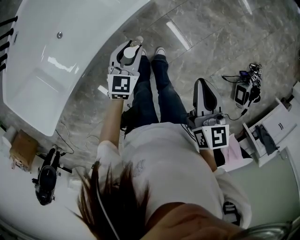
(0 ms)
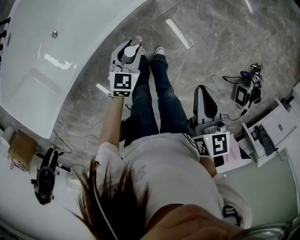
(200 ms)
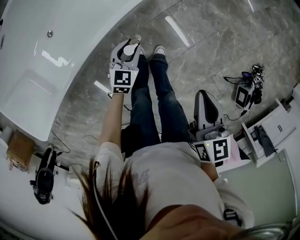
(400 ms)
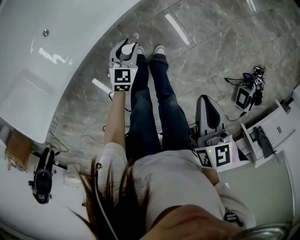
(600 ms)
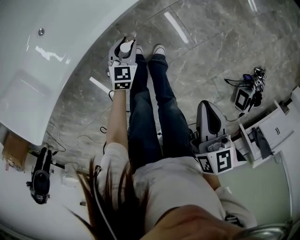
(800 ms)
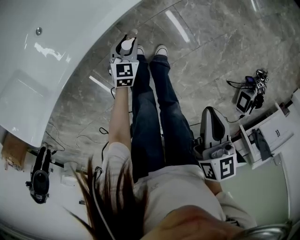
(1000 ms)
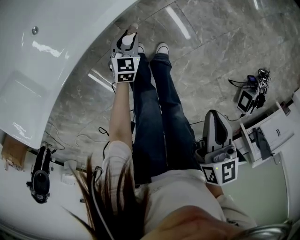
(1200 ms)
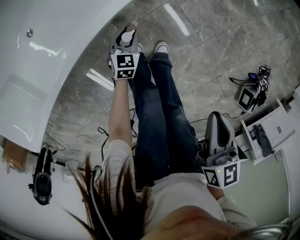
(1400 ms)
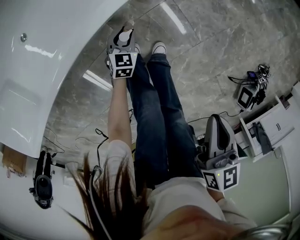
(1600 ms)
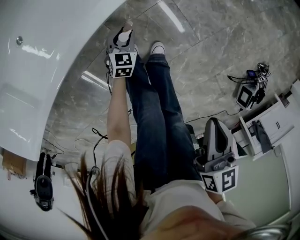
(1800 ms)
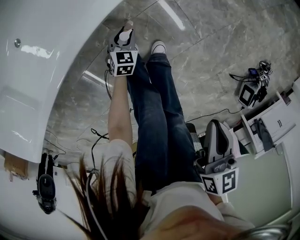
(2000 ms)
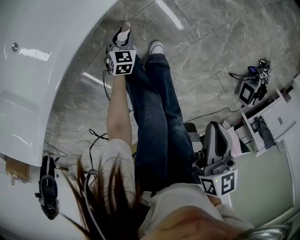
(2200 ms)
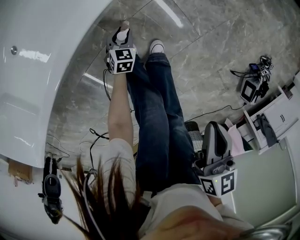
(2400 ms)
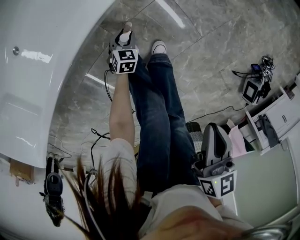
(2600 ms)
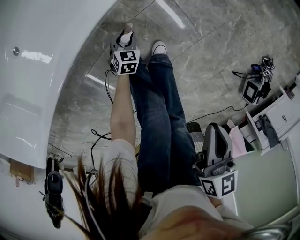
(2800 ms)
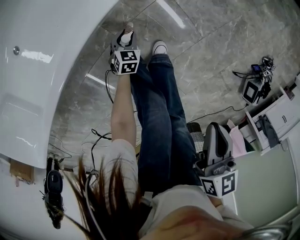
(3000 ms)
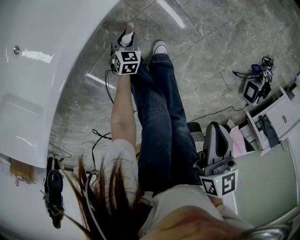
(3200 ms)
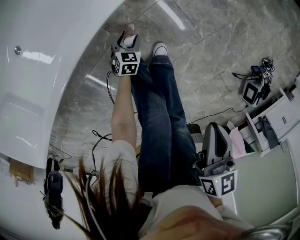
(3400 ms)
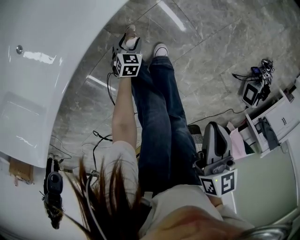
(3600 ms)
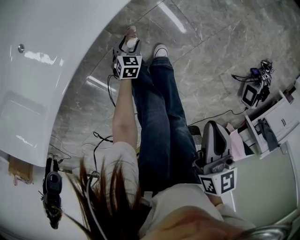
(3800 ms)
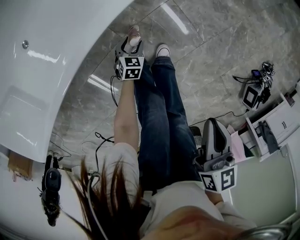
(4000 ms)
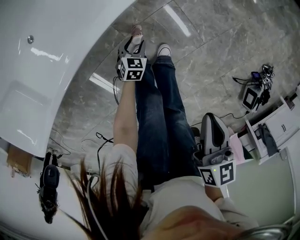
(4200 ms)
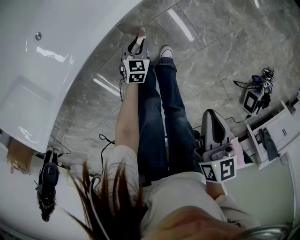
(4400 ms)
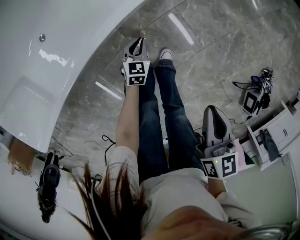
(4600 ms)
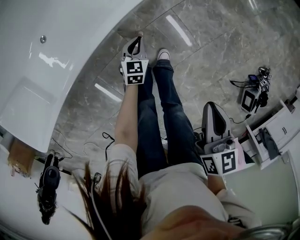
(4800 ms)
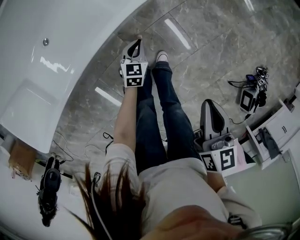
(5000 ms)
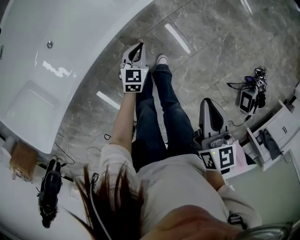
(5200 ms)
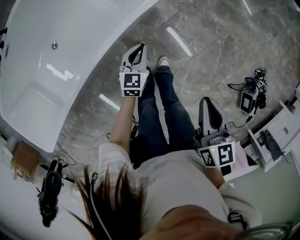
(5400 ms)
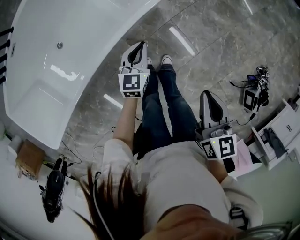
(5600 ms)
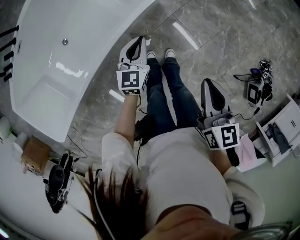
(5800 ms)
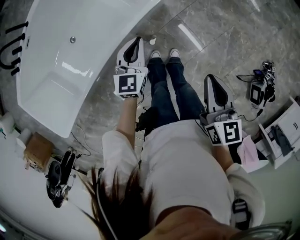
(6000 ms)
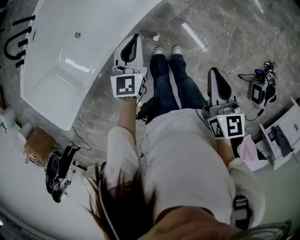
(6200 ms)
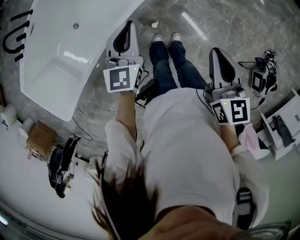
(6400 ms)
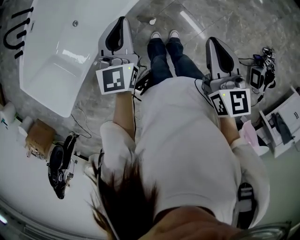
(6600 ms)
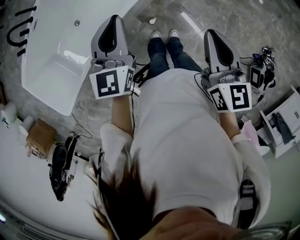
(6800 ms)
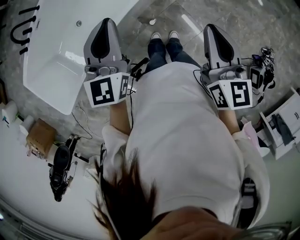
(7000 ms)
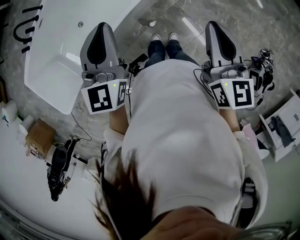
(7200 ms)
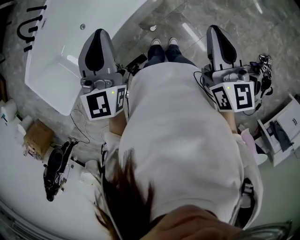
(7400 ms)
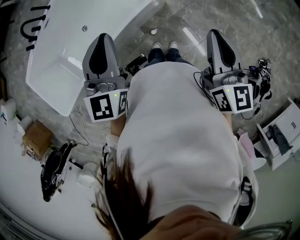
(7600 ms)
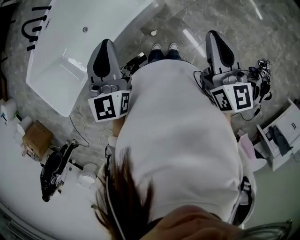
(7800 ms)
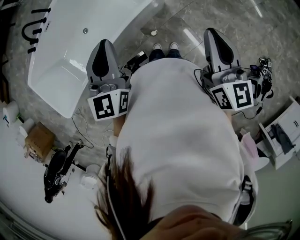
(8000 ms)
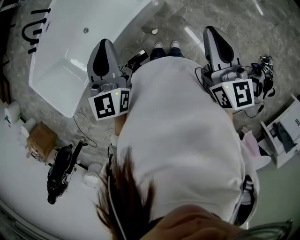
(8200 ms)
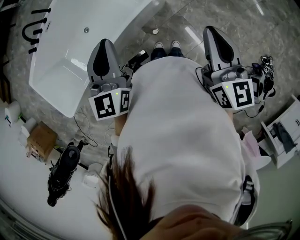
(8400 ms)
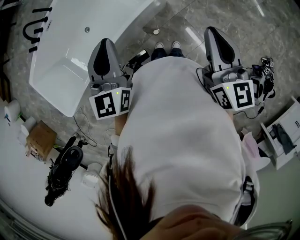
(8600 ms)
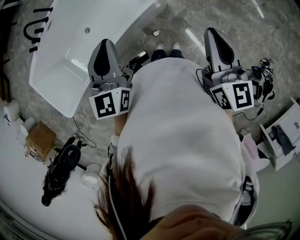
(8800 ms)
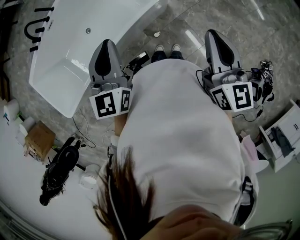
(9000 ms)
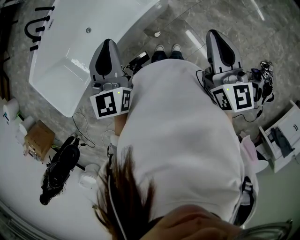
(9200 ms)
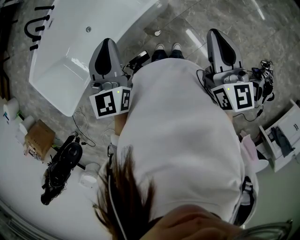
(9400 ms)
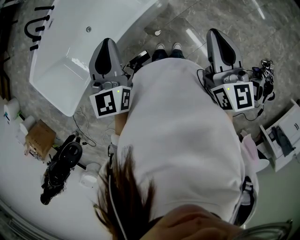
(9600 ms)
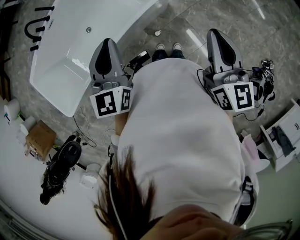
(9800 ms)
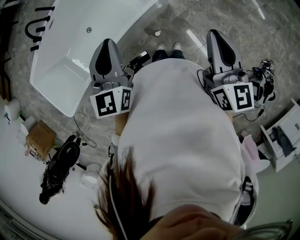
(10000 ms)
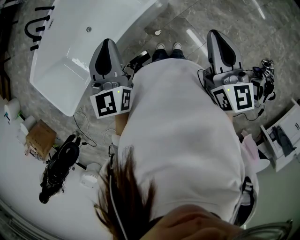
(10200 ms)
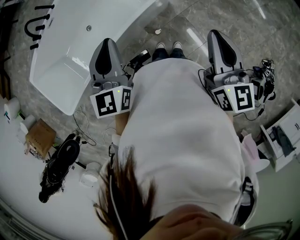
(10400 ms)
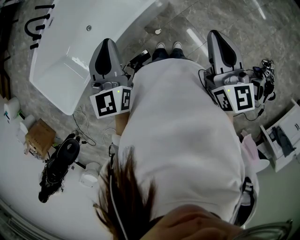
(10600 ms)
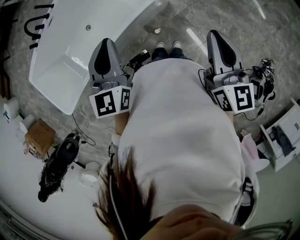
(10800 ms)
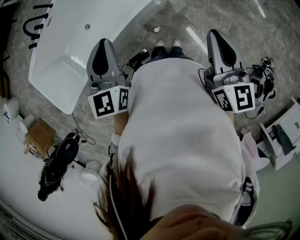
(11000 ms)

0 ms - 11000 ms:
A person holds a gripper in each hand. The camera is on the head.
0 ms - 1600 ms: The left gripper shifts about 40 cm downward. Meanwhile the right gripper goes some 20 cm downward.
1600 ms - 3200 ms: The left gripper goes some 10 cm downward.
3200 ms - 4800 ms: The right gripper is displaced upward by approximately 10 cm. The left gripper is displaced upward by approximately 20 cm, and closes.
4800 ms - 6200 ms: The right gripper shifts approximately 15 cm upward. Meanwhile the left gripper goes approximately 40 cm upward, and turns by roughly 20 degrees.
6200 ms - 7800 ms: Both grippers travel together upward, roughly 20 cm.
7800 ms - 11000 ms: The grippers stay close to where they were, moving slightly.

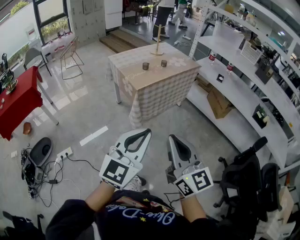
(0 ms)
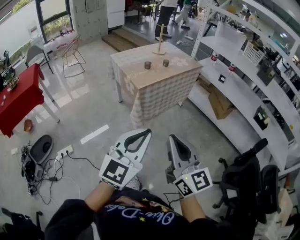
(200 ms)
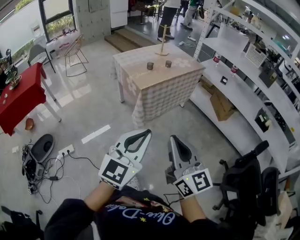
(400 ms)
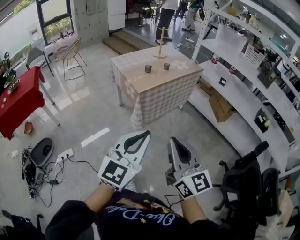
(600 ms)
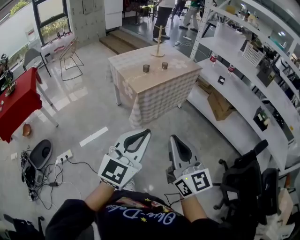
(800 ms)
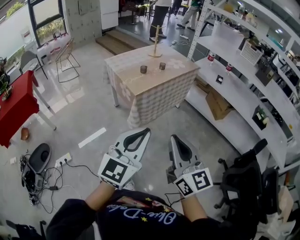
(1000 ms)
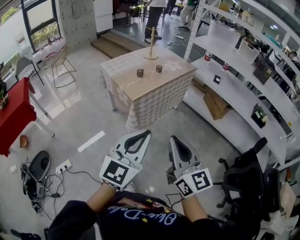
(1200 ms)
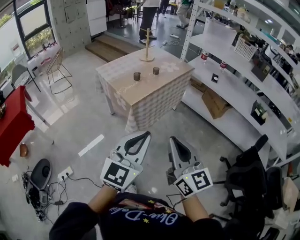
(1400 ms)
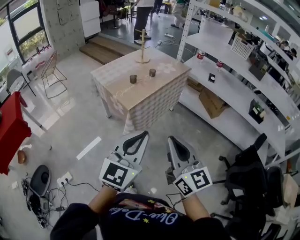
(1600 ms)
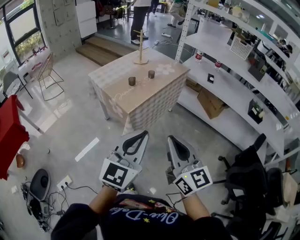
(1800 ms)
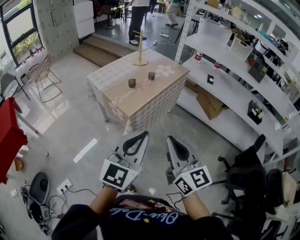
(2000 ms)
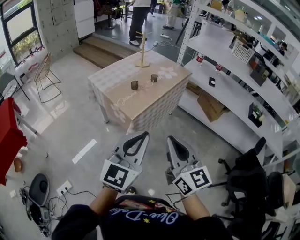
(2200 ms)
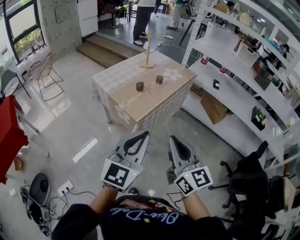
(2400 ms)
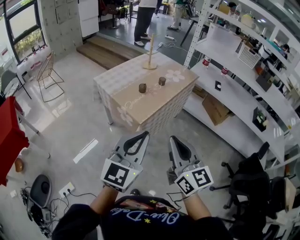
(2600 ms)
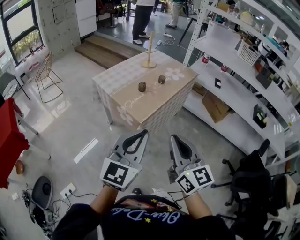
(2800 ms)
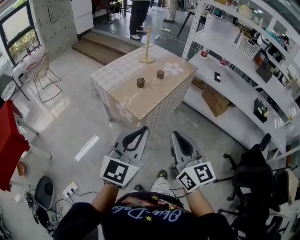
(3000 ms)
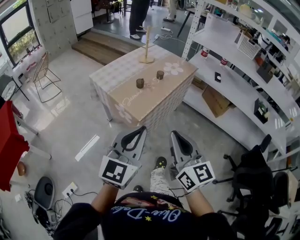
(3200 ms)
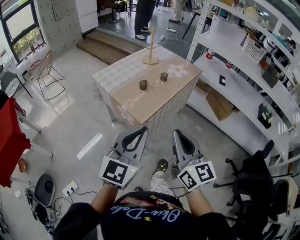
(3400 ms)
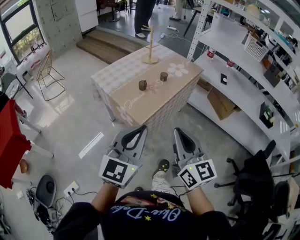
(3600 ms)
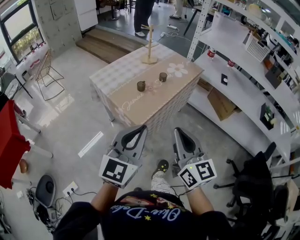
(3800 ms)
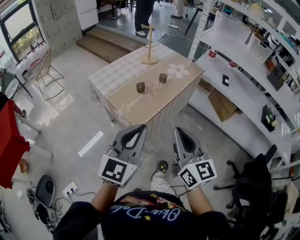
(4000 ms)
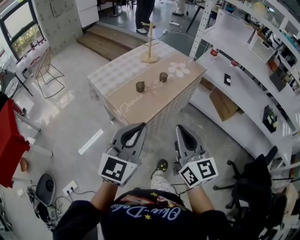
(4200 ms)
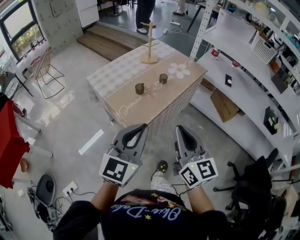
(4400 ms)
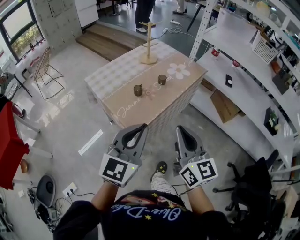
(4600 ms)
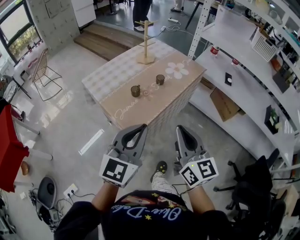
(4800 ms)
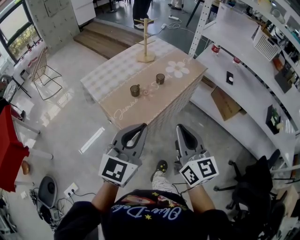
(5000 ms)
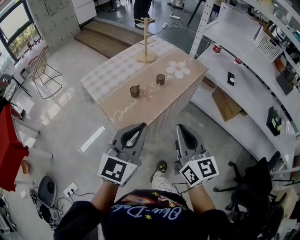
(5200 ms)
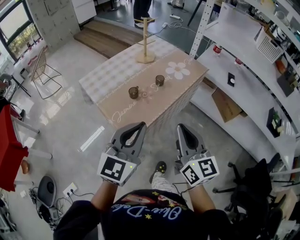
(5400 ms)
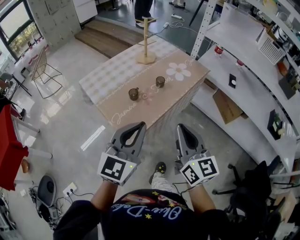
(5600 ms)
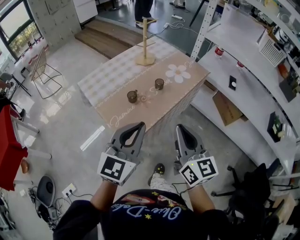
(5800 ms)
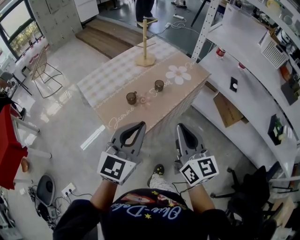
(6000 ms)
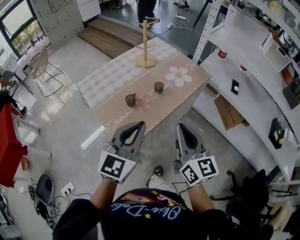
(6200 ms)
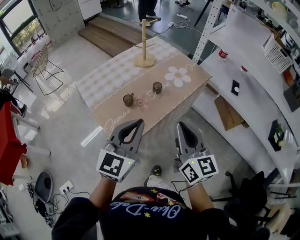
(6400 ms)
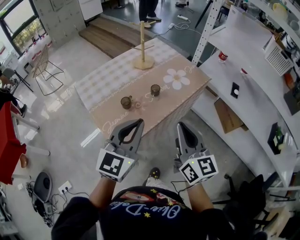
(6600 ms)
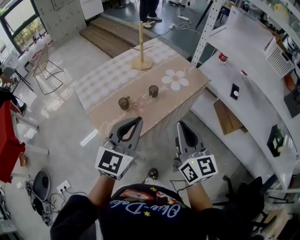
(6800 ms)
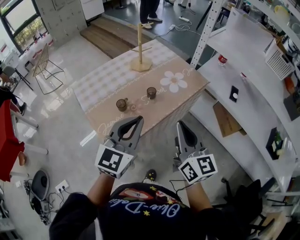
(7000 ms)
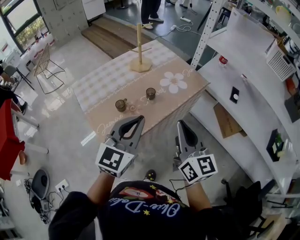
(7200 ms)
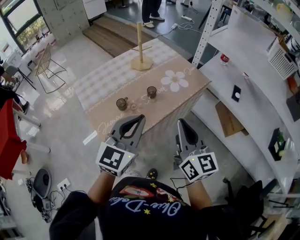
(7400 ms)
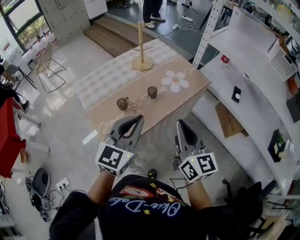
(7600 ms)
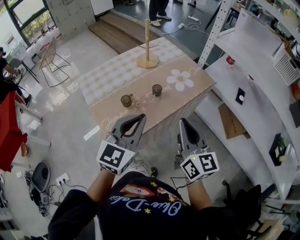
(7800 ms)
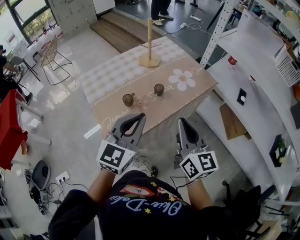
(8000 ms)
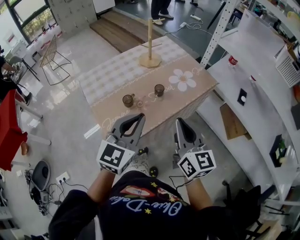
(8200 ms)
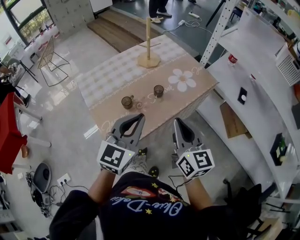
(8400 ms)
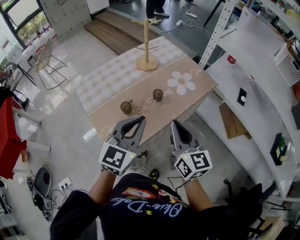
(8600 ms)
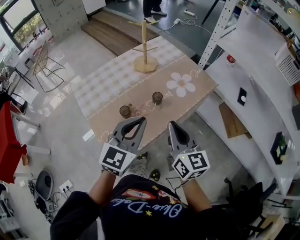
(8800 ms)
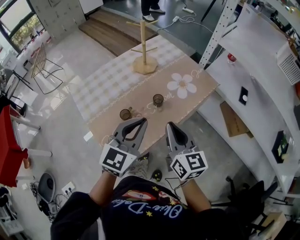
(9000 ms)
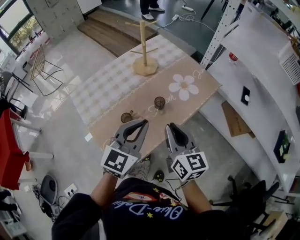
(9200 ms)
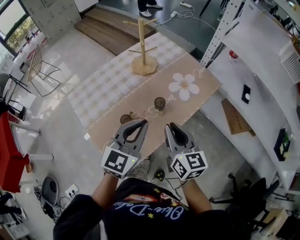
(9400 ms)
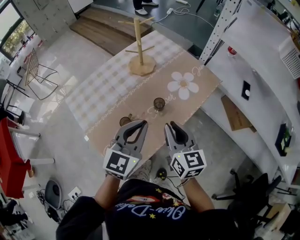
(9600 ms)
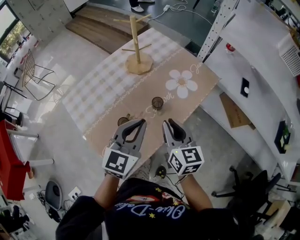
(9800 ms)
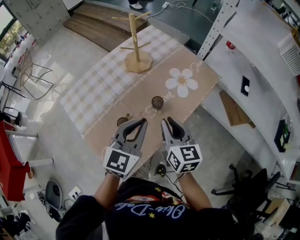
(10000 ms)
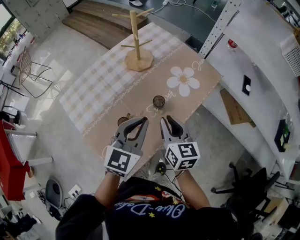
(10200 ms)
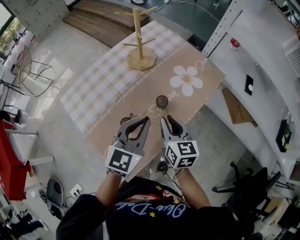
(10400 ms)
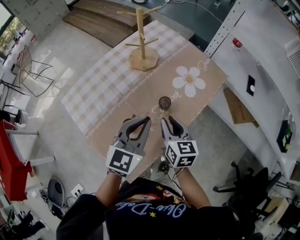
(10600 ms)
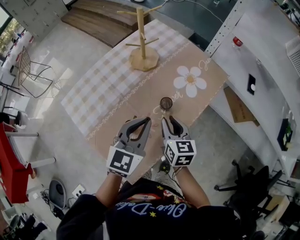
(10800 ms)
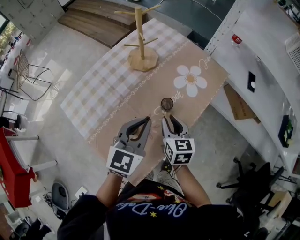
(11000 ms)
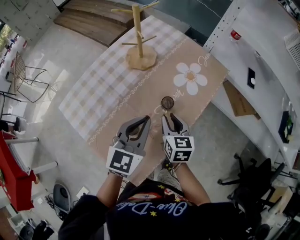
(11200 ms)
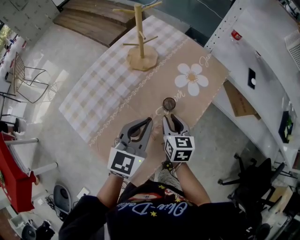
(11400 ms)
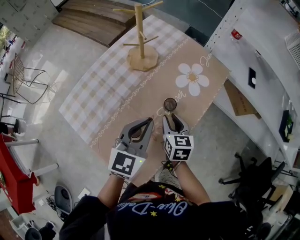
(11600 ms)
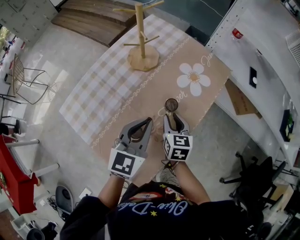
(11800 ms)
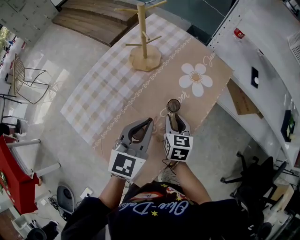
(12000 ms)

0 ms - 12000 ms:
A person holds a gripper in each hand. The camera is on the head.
0 ms - 1600 ms: Both grippers move forward, approximately 15 cm.
1600 ms - 3000 ms: The right gripper shifts some 15 cm forward and to the left. The left gripper shifts roughly 15 cm to the left and forward.
3000 ms - 4400 ms: The two grippers go some 15 cm forward.
4400 ms - 6000 ms: The grippers both shift forward by roughly 15 cm.
6000 ms - 7600 ms: Both grippers travel together forward and to the right, approximately 10 cm.
7600 ms - 9000 ms: The right gripper shifts some 10 cm forward, to the left and downward. Meanwhile the left gripper travels forward by about 10 cm.
9000 ms - 10400 ms: The right gripper travels downward and forward by some 15 cm, while the left gripper is displaced forward and downward by approximately 10 cm.
10400 ms - 12000 ms: The right gripper travels downward by some 10 cm, and changes its angle by some 20 degrees, while the left gripper moves approximately 5 cm.

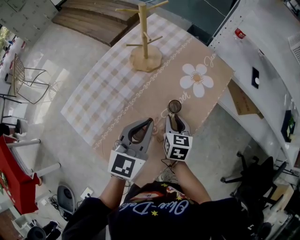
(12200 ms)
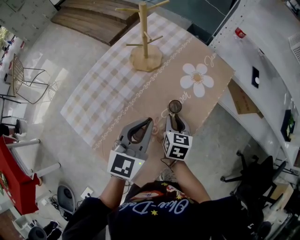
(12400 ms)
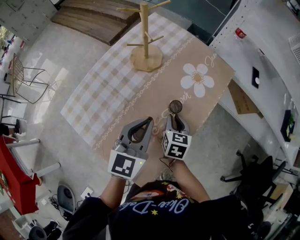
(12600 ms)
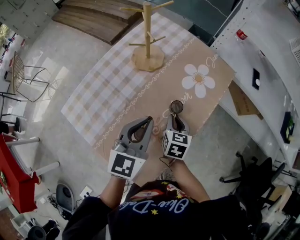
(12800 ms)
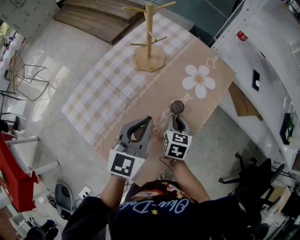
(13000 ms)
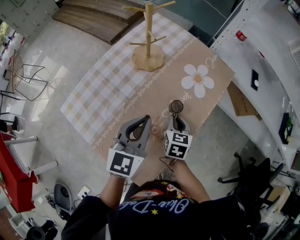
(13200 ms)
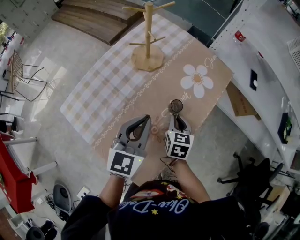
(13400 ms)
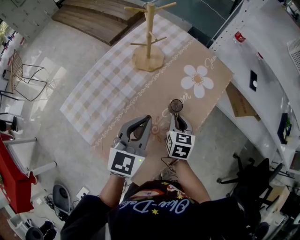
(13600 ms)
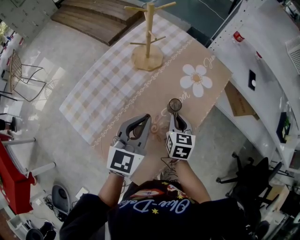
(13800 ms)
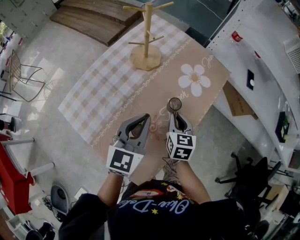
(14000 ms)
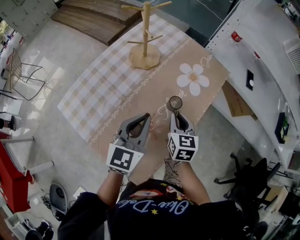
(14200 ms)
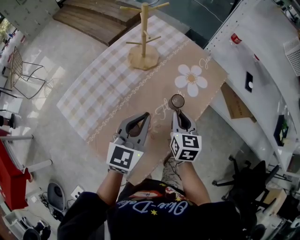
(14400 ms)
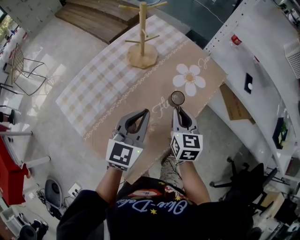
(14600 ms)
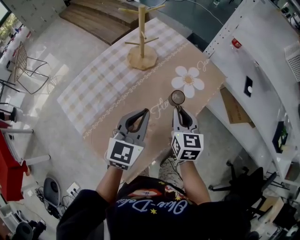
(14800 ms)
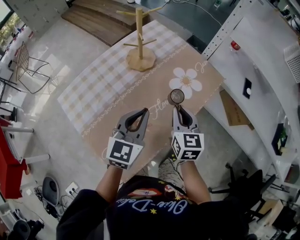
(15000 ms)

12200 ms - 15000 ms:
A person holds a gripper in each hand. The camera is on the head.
12200 ms - 13600 ms: The grippers make only small movements.
13600 ms - 15000 ms: The left gripper shifts roughly 5 cm to the right. The right gripper heads upward, covering about 10 cm, and turns by approximately 20 degrees.
